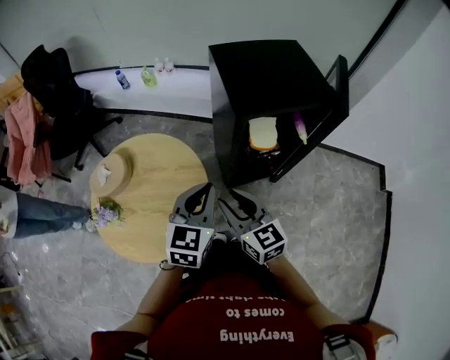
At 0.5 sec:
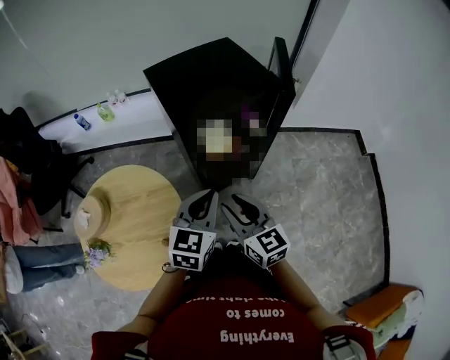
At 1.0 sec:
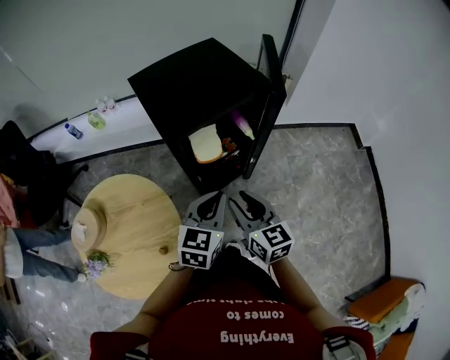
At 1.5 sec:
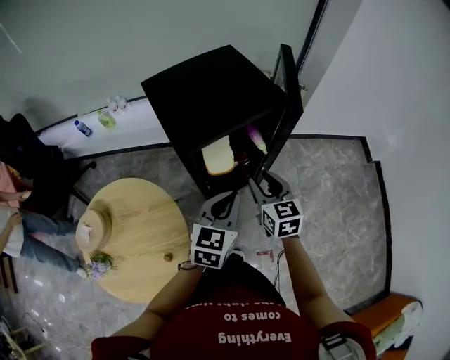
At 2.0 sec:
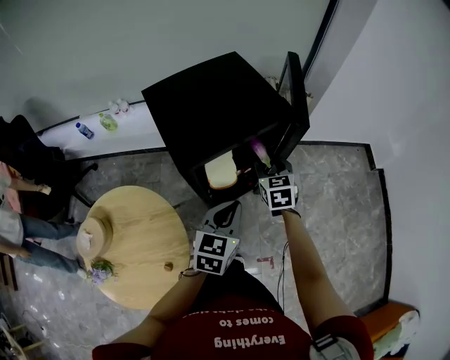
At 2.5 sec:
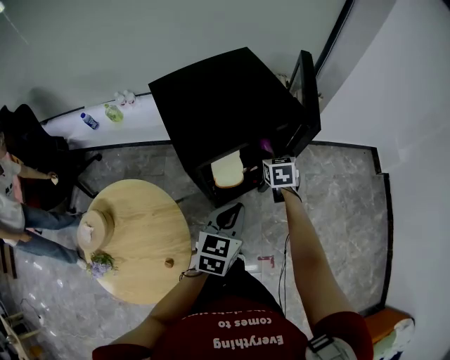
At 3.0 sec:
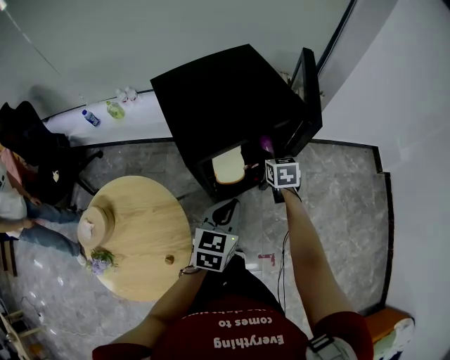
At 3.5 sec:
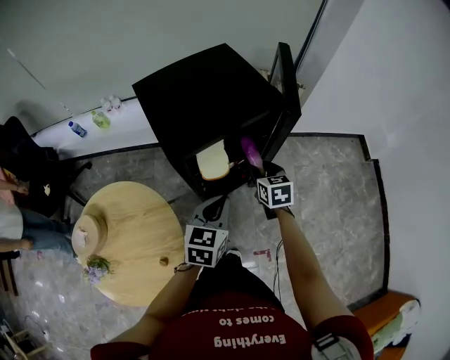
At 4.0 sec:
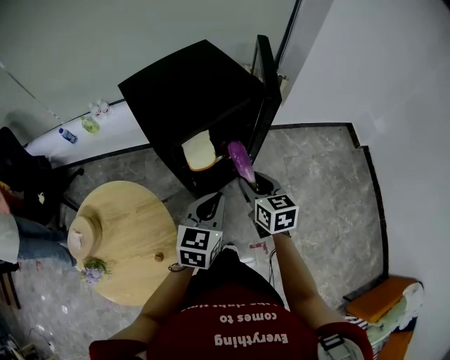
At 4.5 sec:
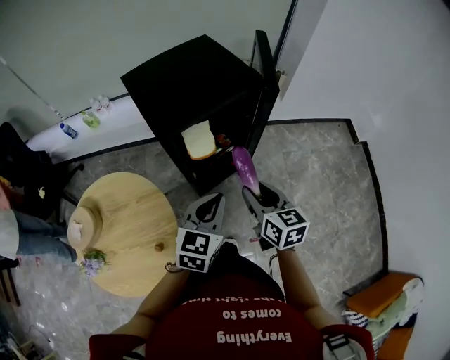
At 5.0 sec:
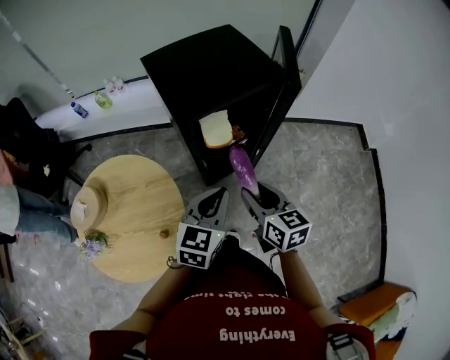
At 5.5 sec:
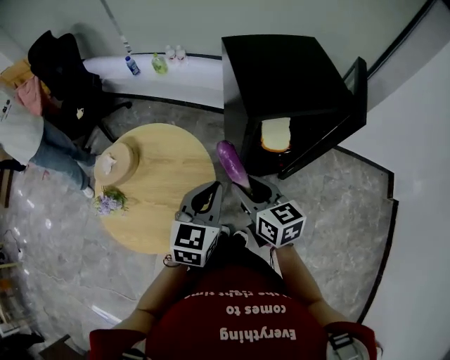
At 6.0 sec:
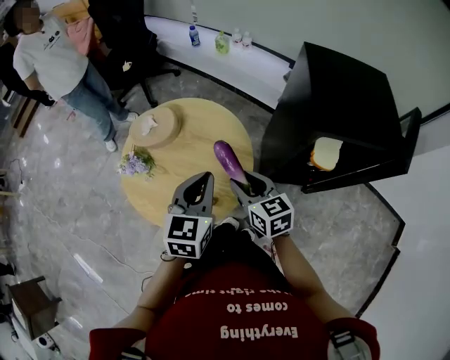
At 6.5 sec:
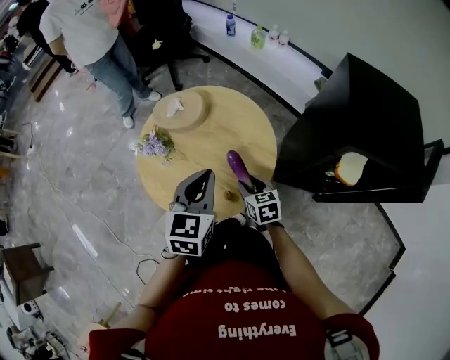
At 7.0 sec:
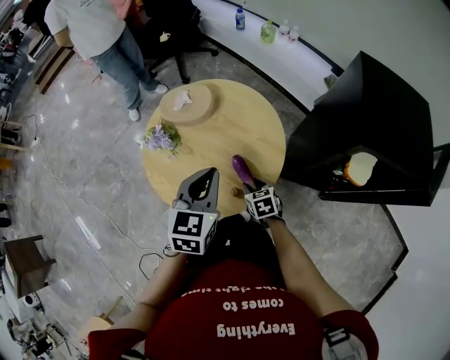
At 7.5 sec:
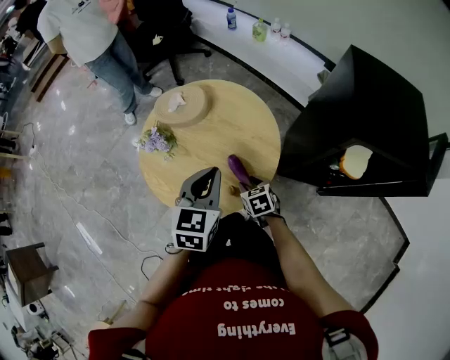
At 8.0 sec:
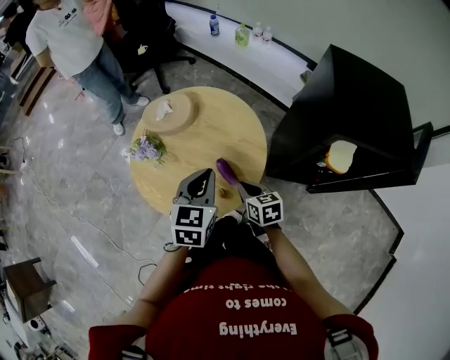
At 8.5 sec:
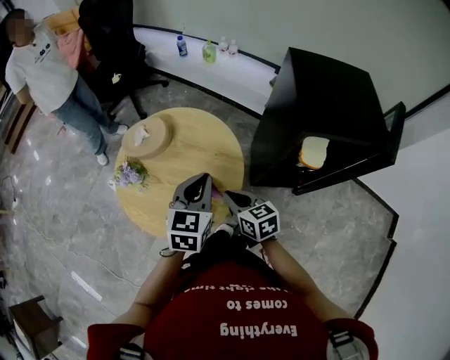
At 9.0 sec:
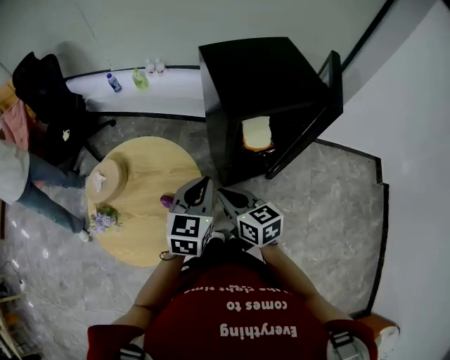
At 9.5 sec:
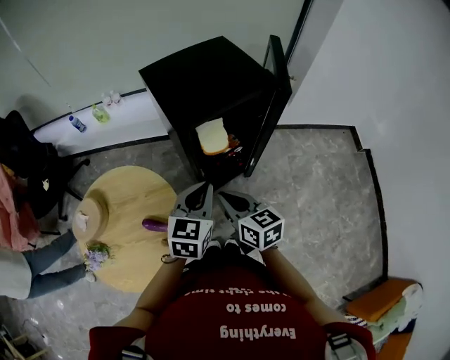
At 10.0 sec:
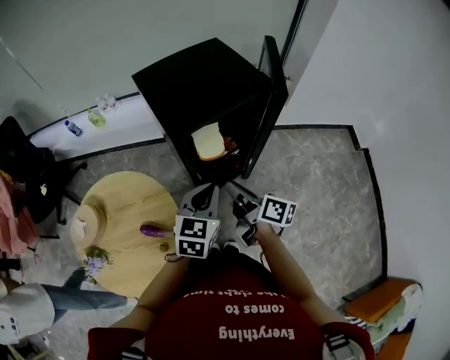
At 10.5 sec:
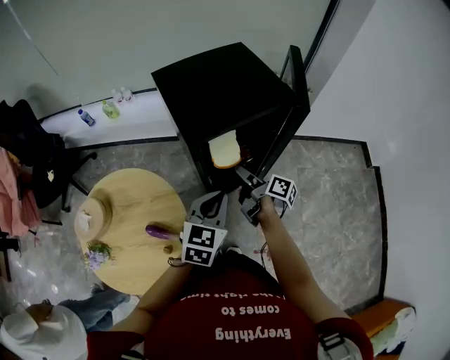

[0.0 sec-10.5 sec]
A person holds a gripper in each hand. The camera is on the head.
0.0 sec to 2.0 sec: The left gripper ends up roughly 20 cm from where it was, and swivels some 20 degrees. Meanwhile the right gripper changes place by roughly 40 cm, and rotates approximately 40 degrees.
2.0 sec to 4.0 sec: The right gripper moves backward, about 15 cm.
4.0 sec to 6.5 sec: The left gripper moves some 40 cm, and swivels some 60 degrees. The right gripper changes place by about 40 cm, and swivels about 60 degrees.
6.5 sec to 8.5 sec: The left gripper moves to the right, some 5 cm. Meanwhile the right gripper goes approximately 10 cm upward, and closes.
8.5 sec to 10.5 sec: The left gripper moves some 30 cm, and changes its angle by about 40 degrees. Meanwhile the right gripper goes upward and returns, about 10 cm each way, rotates around the line of its fingers by roughly 70 degrees, clockwise from behind, and opens up.

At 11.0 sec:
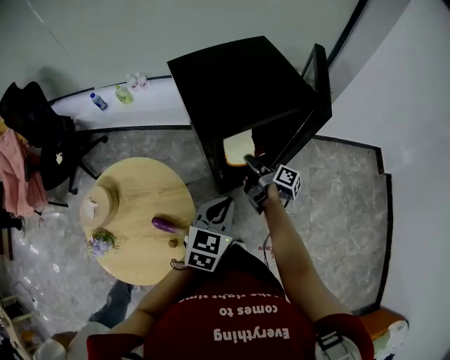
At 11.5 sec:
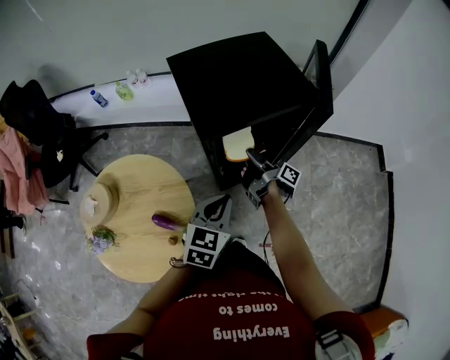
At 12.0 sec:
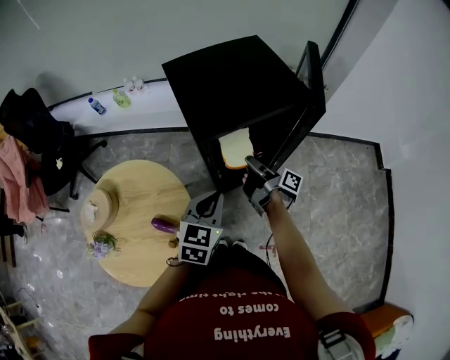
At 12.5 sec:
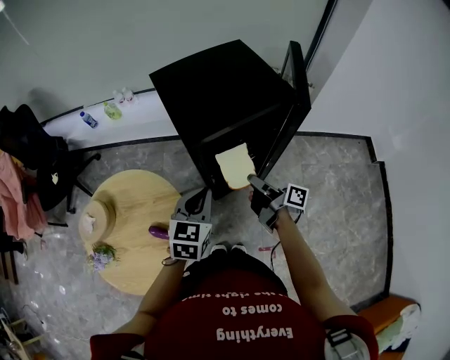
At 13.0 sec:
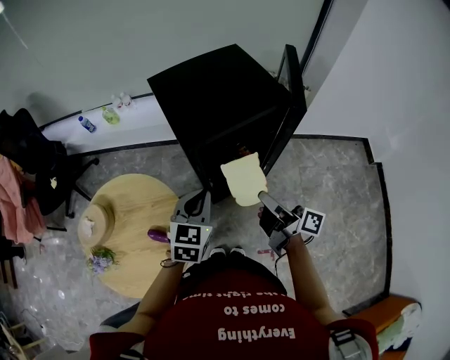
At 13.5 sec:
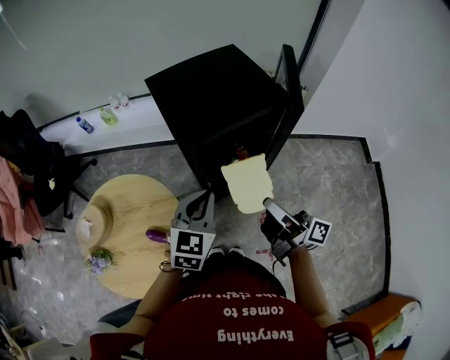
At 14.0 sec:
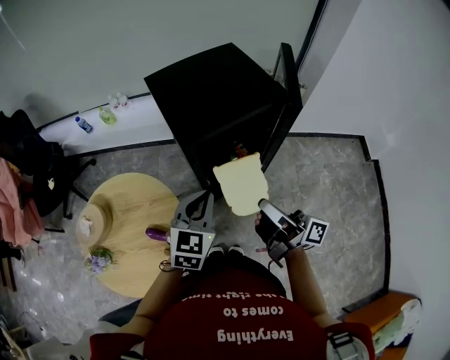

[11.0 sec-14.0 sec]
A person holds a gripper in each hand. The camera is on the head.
11.0 sec to 12.5 sec: The right gripper heads backward and upward, covering roughly 10 cm, and closes.
12.5 sec to 14.0 sec: The right gripper moves upward and backward, some 20 cm, and swivels roughly 20 degrees.

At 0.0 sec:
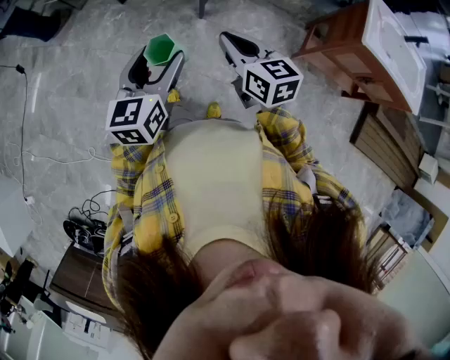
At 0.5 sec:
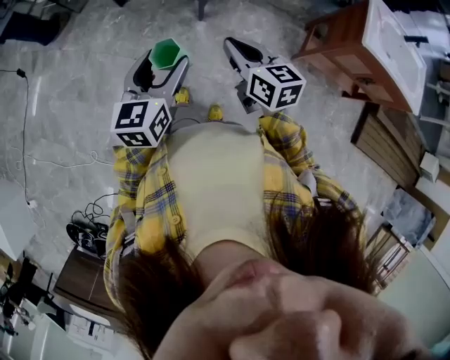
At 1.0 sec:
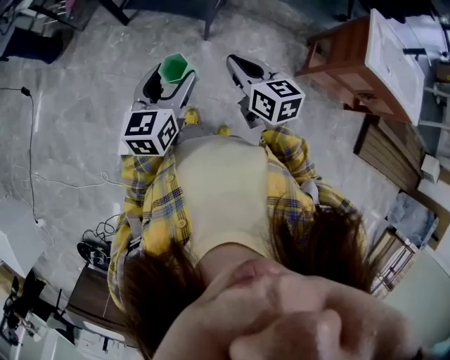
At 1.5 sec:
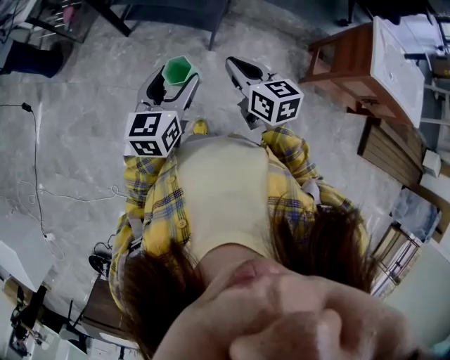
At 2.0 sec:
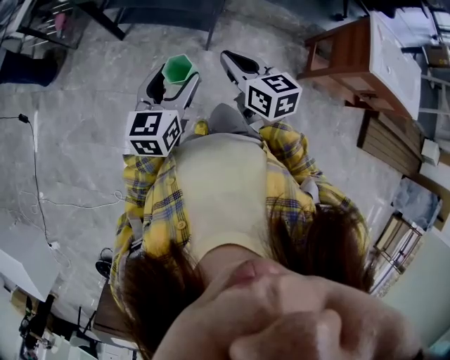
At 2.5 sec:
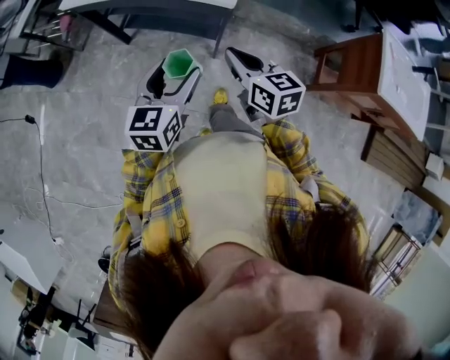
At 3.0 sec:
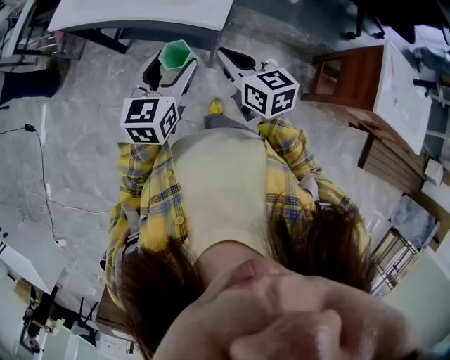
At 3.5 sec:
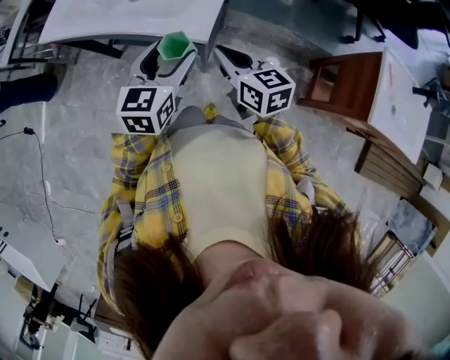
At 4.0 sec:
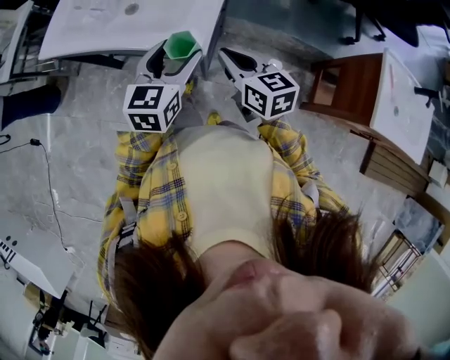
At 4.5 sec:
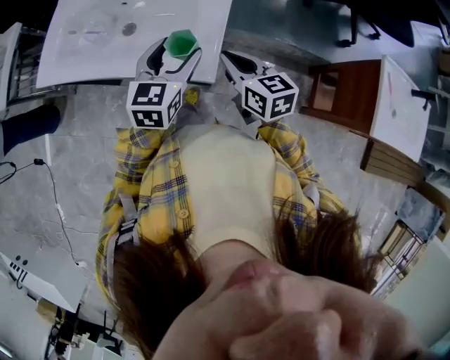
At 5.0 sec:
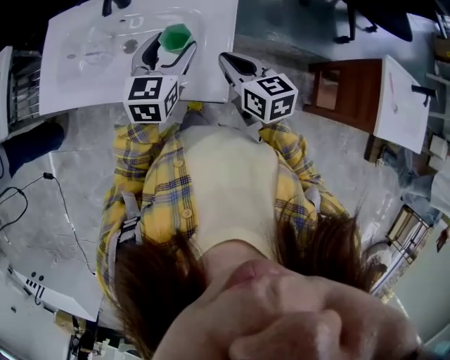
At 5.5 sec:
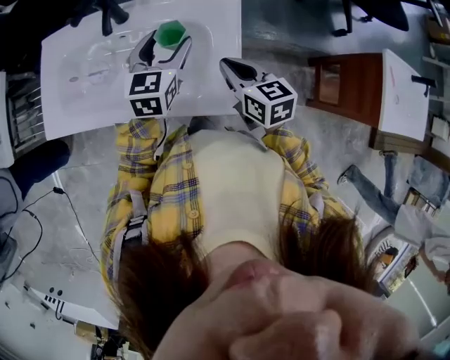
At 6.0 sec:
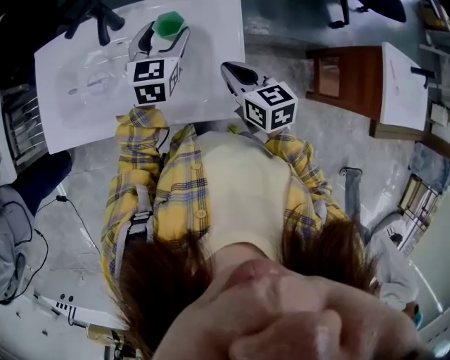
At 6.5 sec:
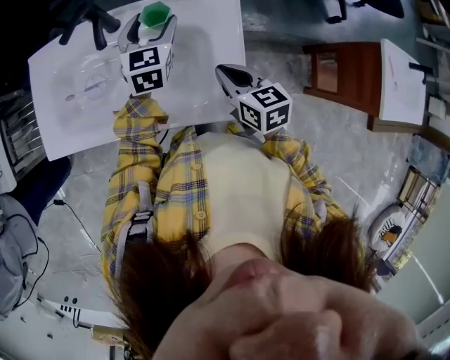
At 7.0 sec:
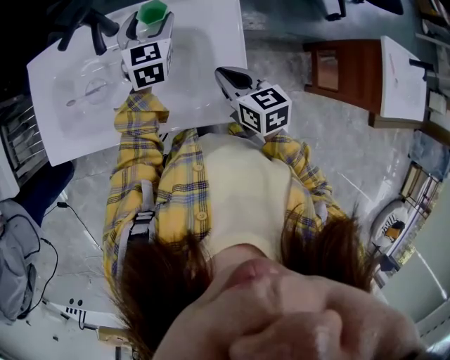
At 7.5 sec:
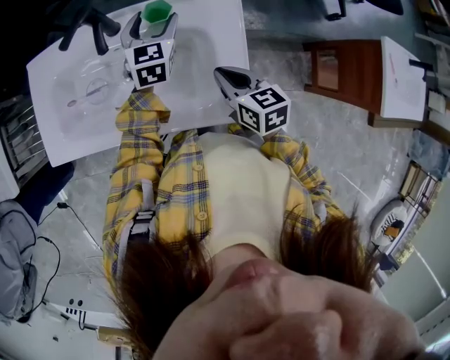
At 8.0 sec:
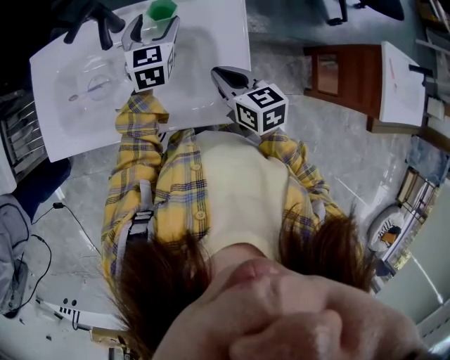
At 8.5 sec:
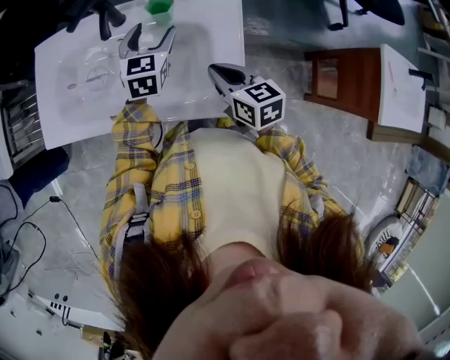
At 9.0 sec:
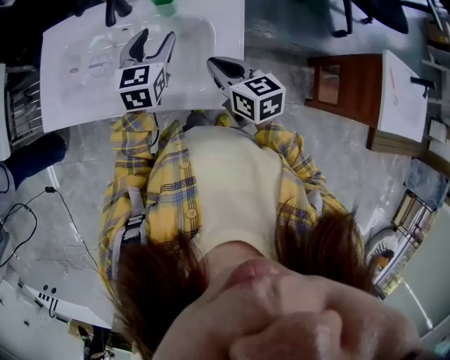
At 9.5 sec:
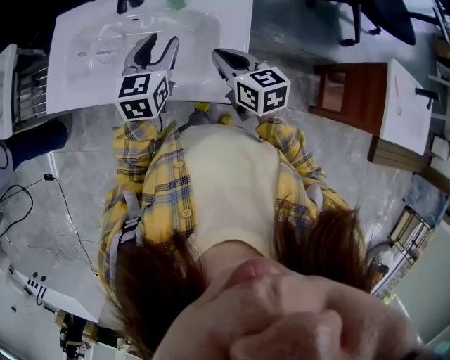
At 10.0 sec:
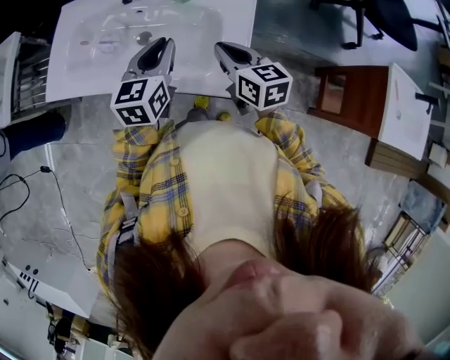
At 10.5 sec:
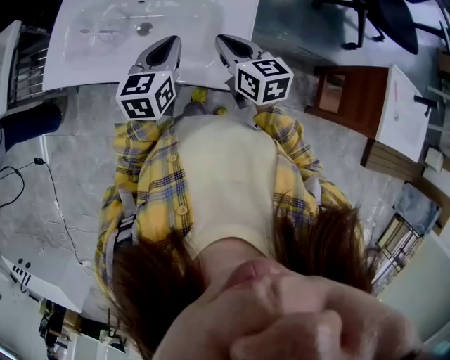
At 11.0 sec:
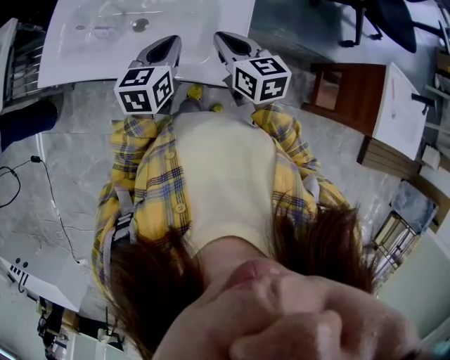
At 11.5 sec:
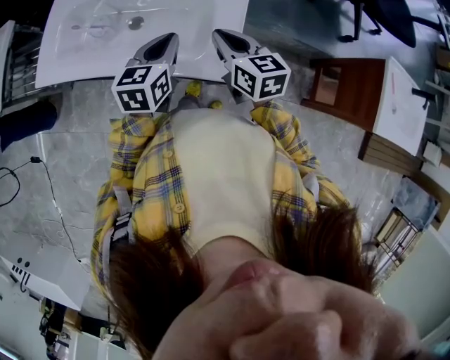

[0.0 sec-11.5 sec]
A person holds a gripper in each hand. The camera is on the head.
0.0 sec to 2.0 sec: Both grippers travel together forward and to the left, roughly 20 cm.
2.0 sec to 4.0 sec: The grippers both shift forward and to the right by approximately 30 cm.
4.0 sec to 6.0 sec: The left gripper heads forward, covering roughly 30 cm. Meanwhile the right gripper moves forward, about 20 cm.
6.0 sec to 7.5 sec: The left gripper heads forward, covering approximately 5 cm.
7.5 sec to 9.5 sec: The left gripper travels backward by some 15 cm, and closes.
9.5 sec to 11.5 sec: The left gripper heads backward, covering approximately 5 cm, and closes its fingers.

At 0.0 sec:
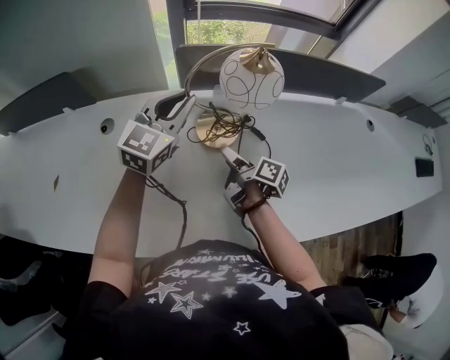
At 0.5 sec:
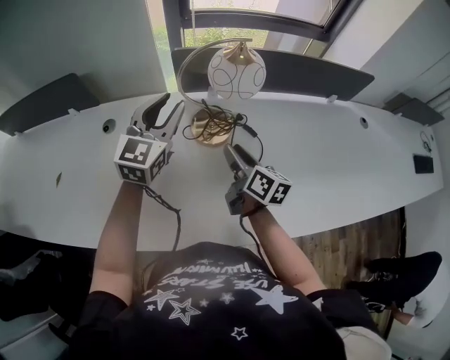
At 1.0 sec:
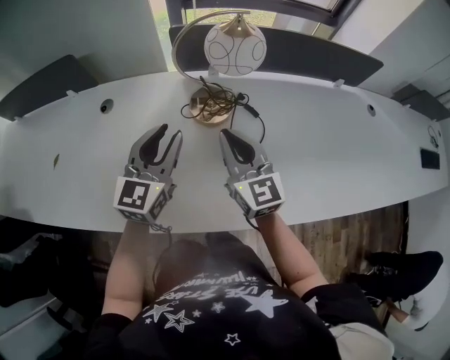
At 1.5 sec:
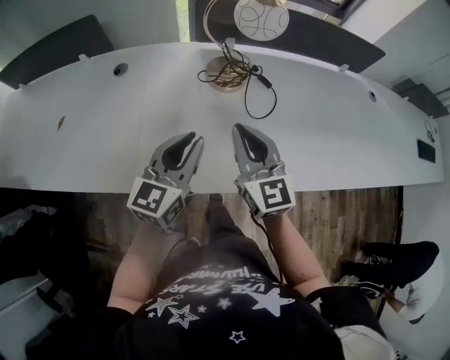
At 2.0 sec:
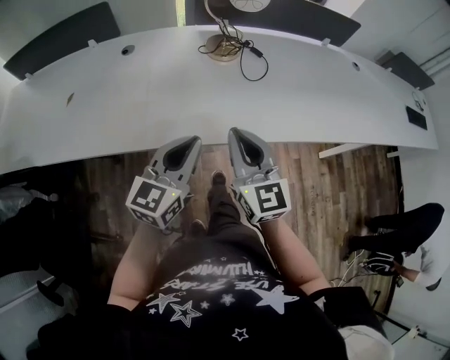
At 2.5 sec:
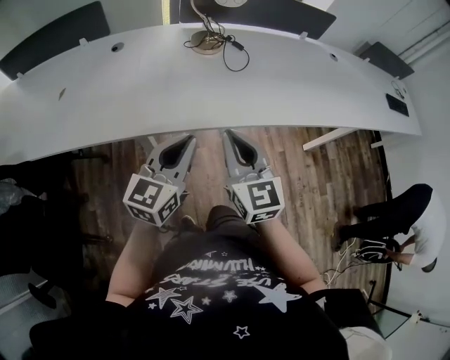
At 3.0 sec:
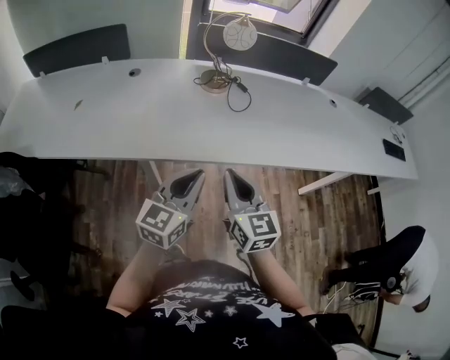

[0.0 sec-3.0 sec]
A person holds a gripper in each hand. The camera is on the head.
0.0 sec to 1.5 sec: The left gripper moves roughly 30 cm, and turns by roughly 20 degrees.
1.5 sec to 3.0 sec: The left gripper ends up about 25 cm from where it was.
